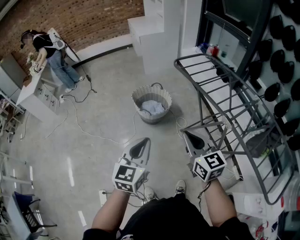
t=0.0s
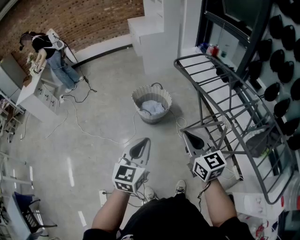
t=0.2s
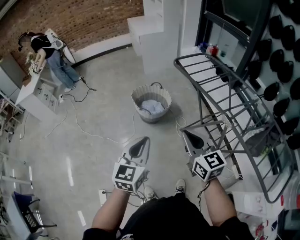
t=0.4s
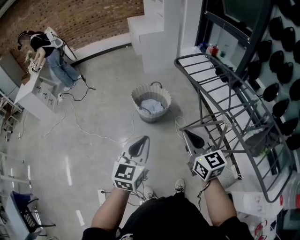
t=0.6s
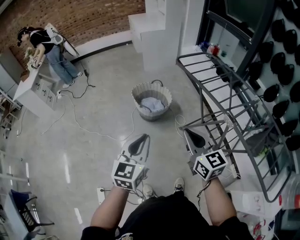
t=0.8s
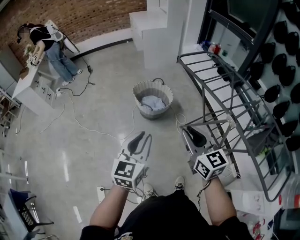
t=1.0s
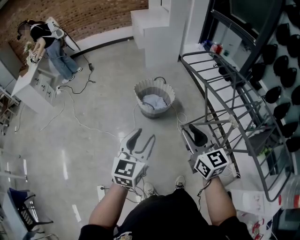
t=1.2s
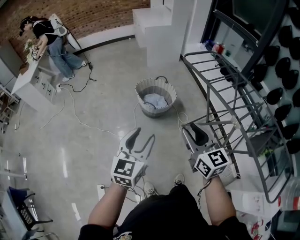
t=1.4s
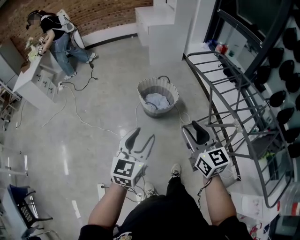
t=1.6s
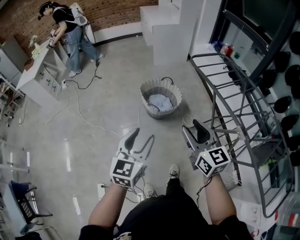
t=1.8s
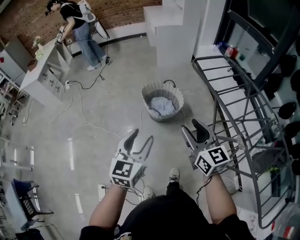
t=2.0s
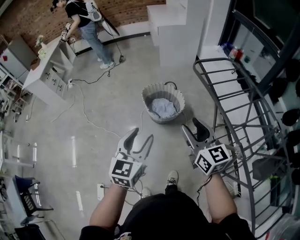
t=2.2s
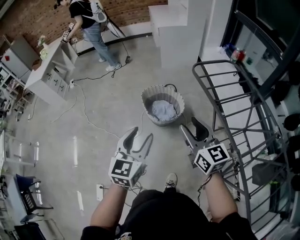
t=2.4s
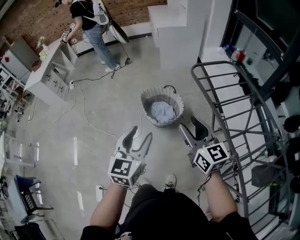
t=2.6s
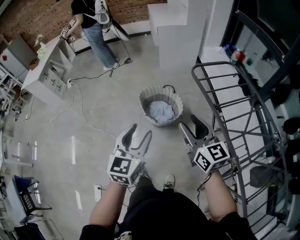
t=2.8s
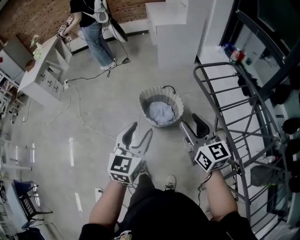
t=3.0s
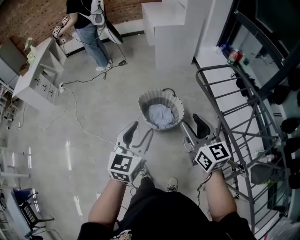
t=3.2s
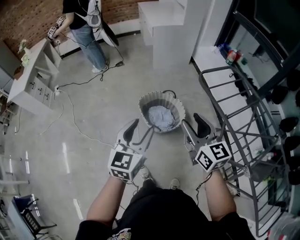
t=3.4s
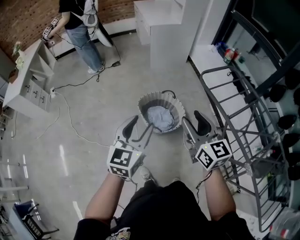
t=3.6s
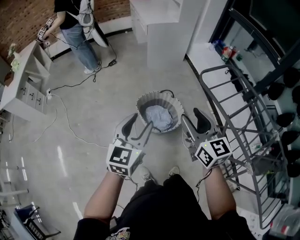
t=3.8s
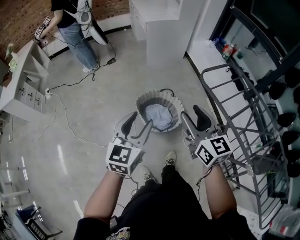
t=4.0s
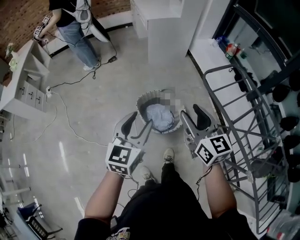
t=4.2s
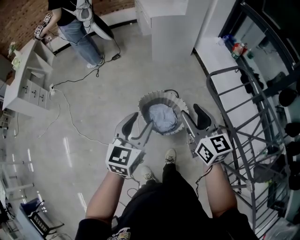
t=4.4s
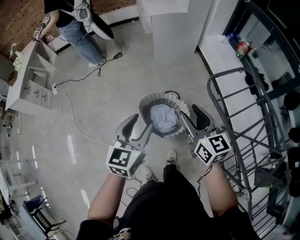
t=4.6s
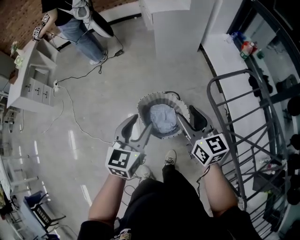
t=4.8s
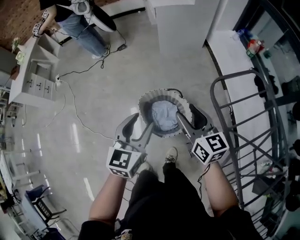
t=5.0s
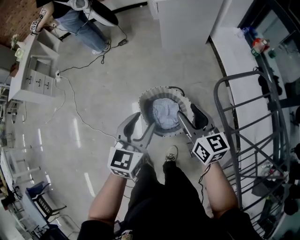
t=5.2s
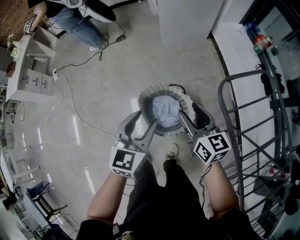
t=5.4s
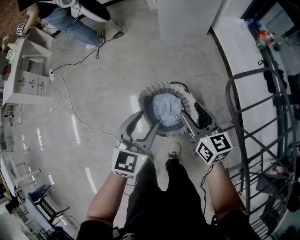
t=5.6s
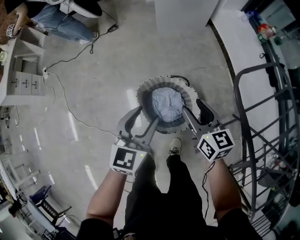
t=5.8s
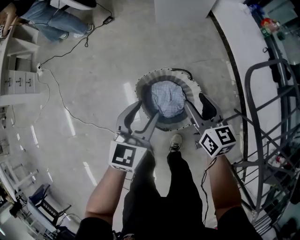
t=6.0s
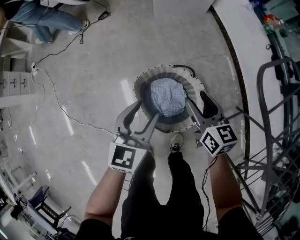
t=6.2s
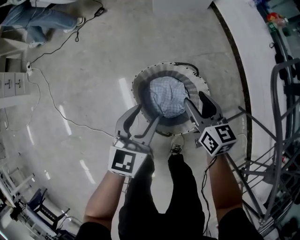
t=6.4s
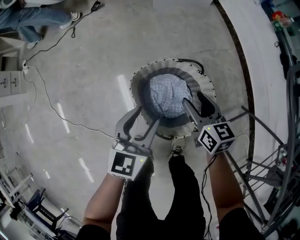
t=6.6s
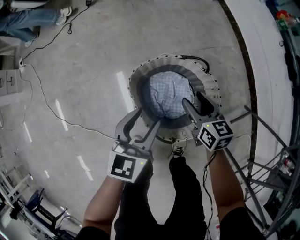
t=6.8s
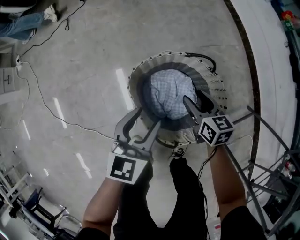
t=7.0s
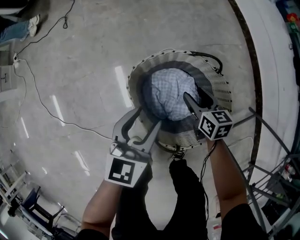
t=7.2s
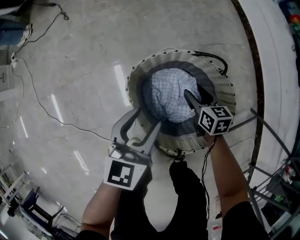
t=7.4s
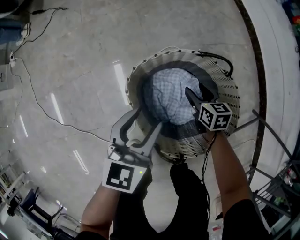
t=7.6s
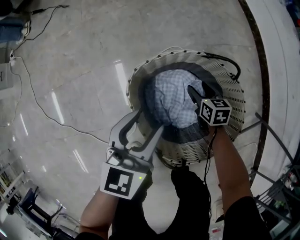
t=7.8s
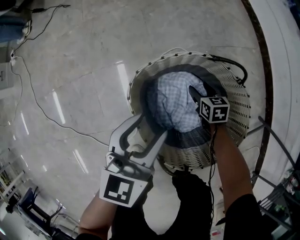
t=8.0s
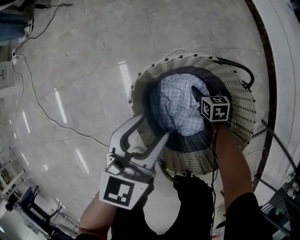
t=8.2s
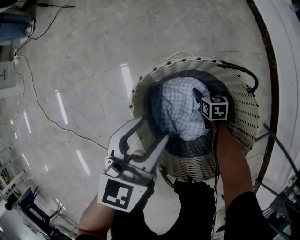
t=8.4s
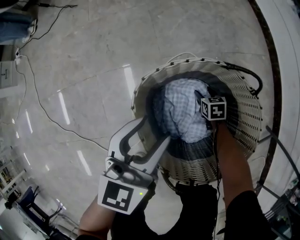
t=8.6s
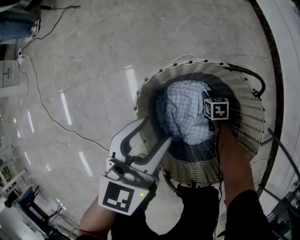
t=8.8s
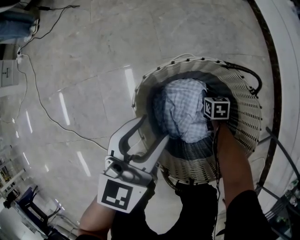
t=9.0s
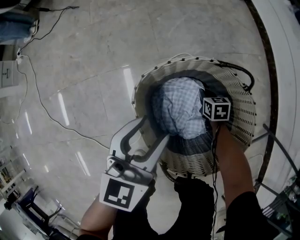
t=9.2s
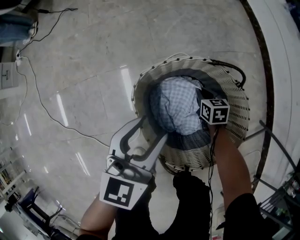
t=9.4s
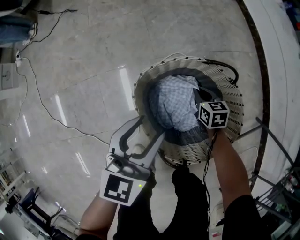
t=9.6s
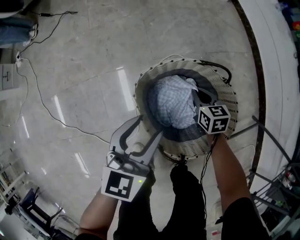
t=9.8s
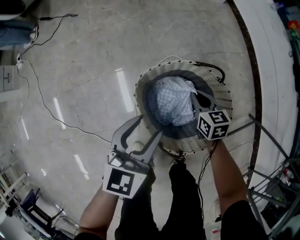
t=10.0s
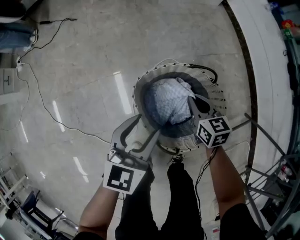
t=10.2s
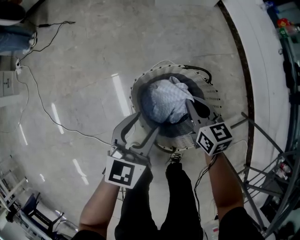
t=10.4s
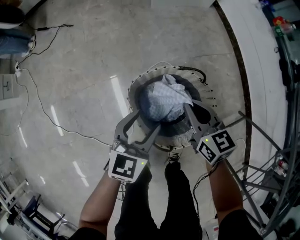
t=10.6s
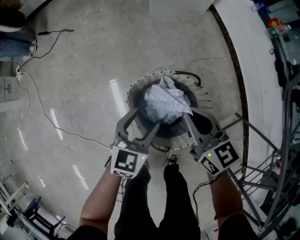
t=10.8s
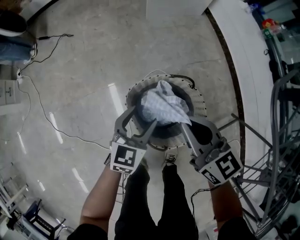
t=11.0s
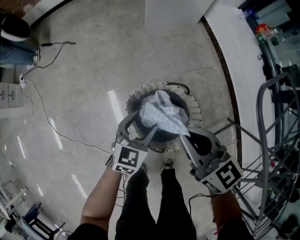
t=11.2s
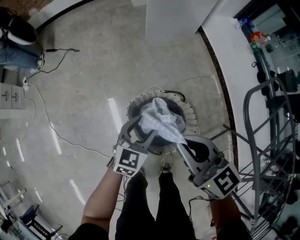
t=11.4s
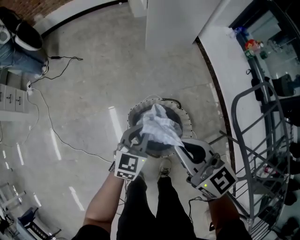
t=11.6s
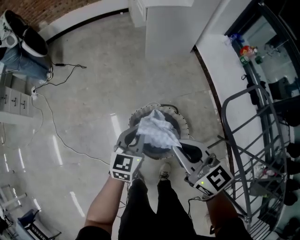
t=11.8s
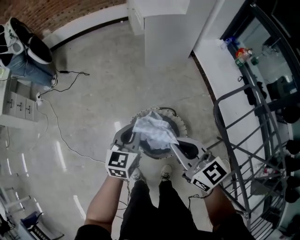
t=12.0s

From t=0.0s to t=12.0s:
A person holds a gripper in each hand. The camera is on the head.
From t=0.0s to t=1.6s: The right gripper goes roughly 10 cm to the left and forward, and opens up; the left gripper moves to the left, about 10 cm, and opens up.
From t=1.6s to t=3.0s: Both grippers move forward, some 20 cm.
From t=3.0s to t=4.4s: The two grippers go some 20 cm forward.
From t=4.4s to t=6.0s: The grippers both shift downward and forward by approximately 30 cm.
From t=6.0s to t=7.6s: The two grippers go roughly 40 cm downward. The right gripper rotates roughly 20 degrees.
From t=7.6s to t=9.0s: The right gripper travels downward by approximately 20 cm, and closes.
From t=9.0s to t=10.4s: The left gripper heads upward, covering about 15 cm, while the right gripper travels upward by about 40 cm, and turns by about 30 degrees.
From t=10.4s to t=12.0s: The left gripper is displaced upward by about 30 cm, and closes its fingers. The right gripper goes about 50 cm upward, and rotates about 20 degrees.

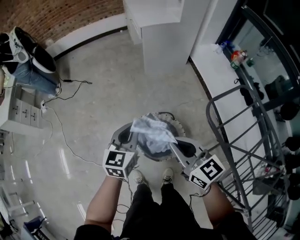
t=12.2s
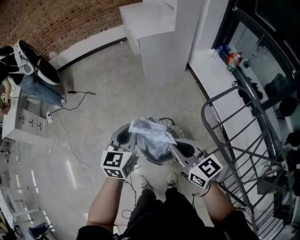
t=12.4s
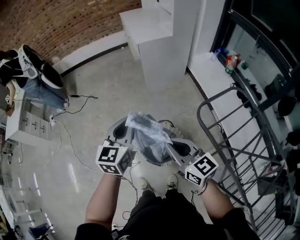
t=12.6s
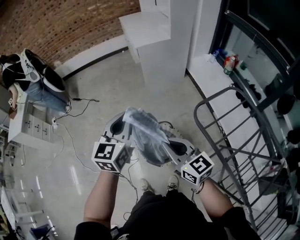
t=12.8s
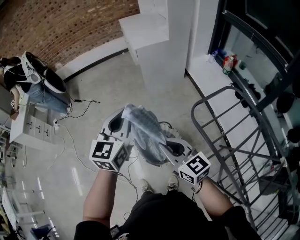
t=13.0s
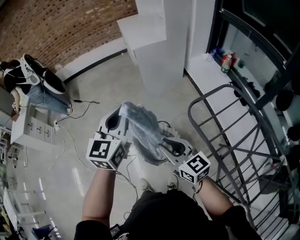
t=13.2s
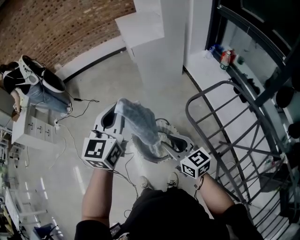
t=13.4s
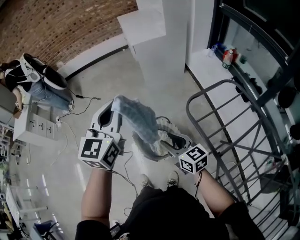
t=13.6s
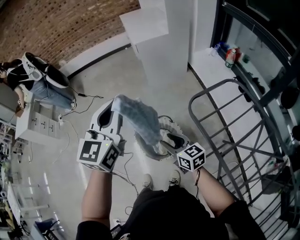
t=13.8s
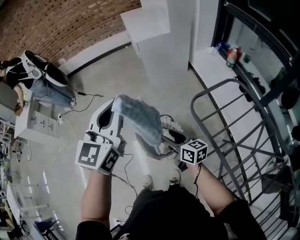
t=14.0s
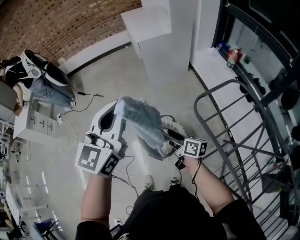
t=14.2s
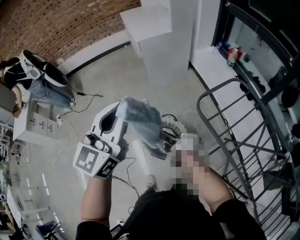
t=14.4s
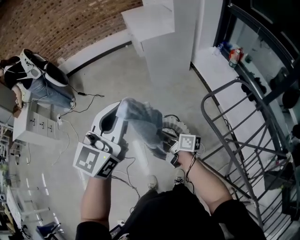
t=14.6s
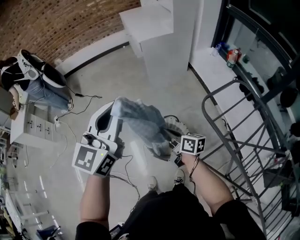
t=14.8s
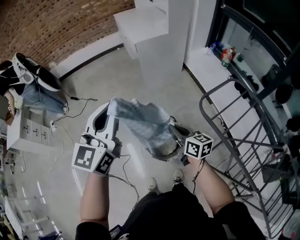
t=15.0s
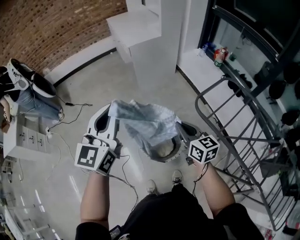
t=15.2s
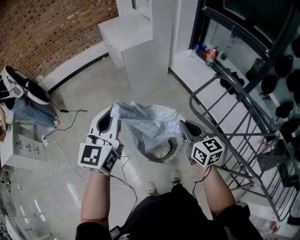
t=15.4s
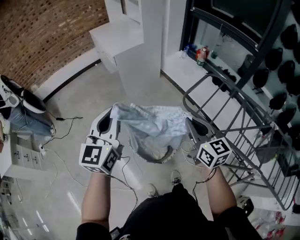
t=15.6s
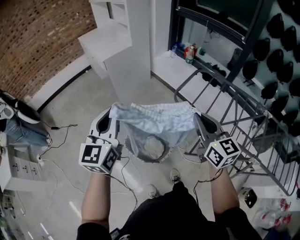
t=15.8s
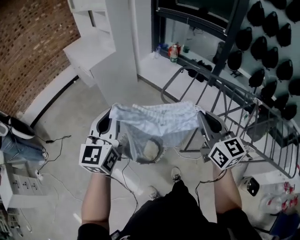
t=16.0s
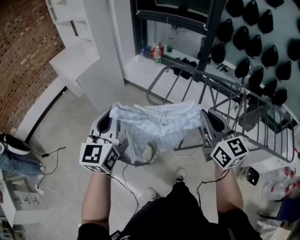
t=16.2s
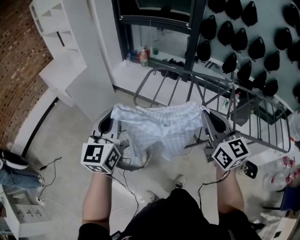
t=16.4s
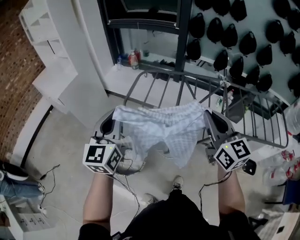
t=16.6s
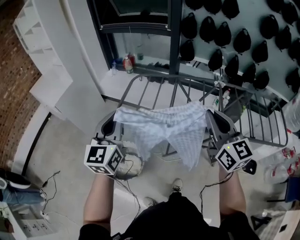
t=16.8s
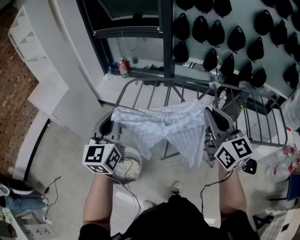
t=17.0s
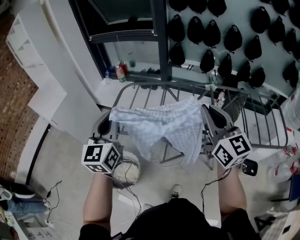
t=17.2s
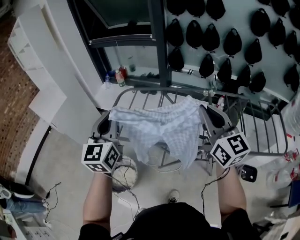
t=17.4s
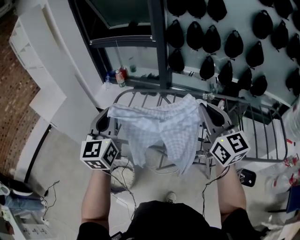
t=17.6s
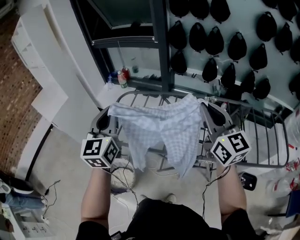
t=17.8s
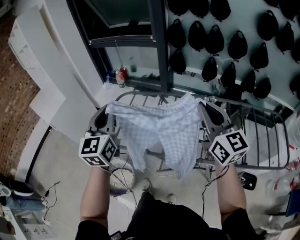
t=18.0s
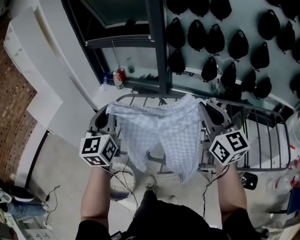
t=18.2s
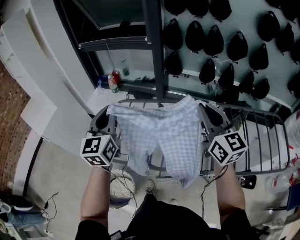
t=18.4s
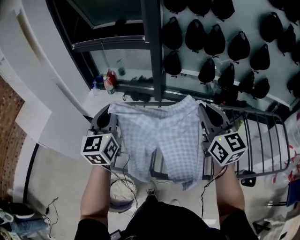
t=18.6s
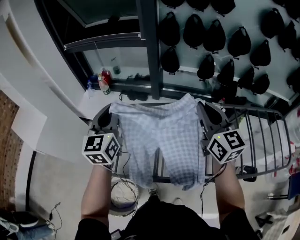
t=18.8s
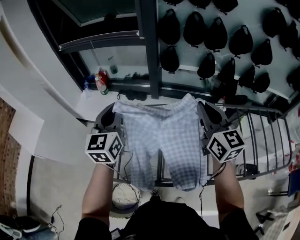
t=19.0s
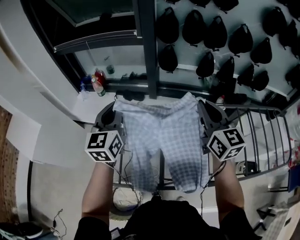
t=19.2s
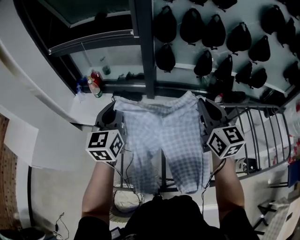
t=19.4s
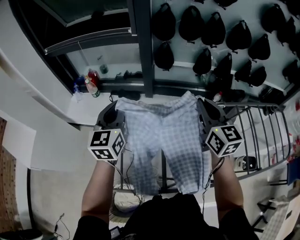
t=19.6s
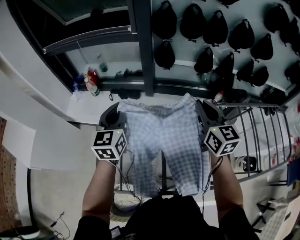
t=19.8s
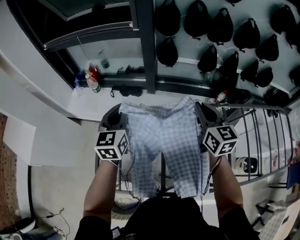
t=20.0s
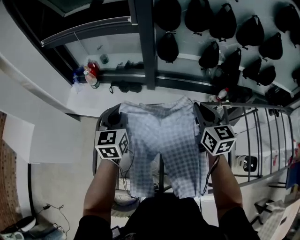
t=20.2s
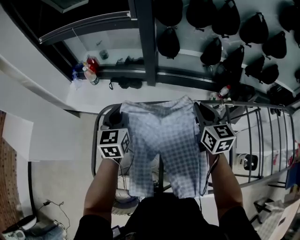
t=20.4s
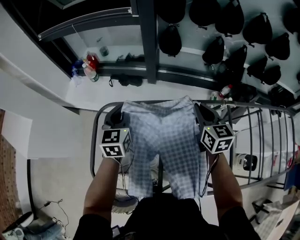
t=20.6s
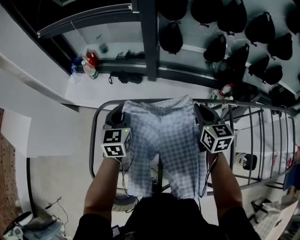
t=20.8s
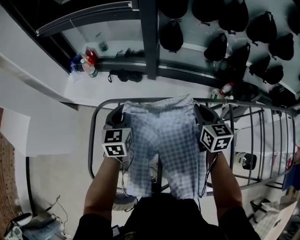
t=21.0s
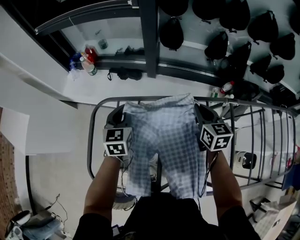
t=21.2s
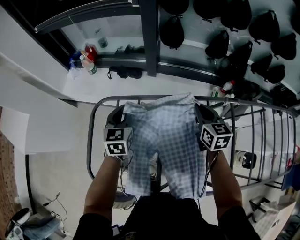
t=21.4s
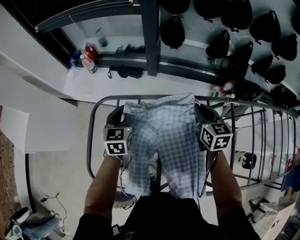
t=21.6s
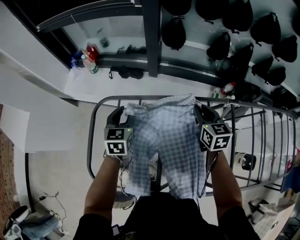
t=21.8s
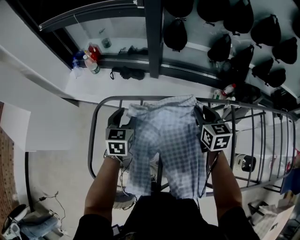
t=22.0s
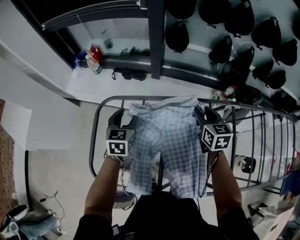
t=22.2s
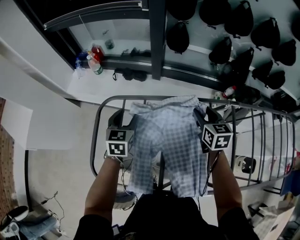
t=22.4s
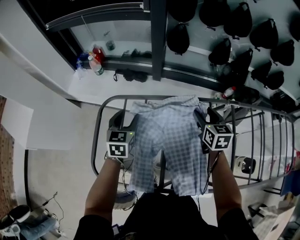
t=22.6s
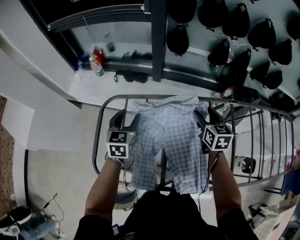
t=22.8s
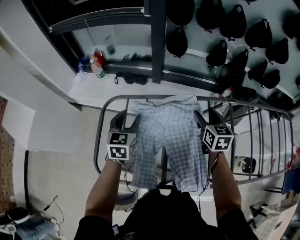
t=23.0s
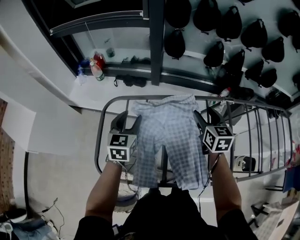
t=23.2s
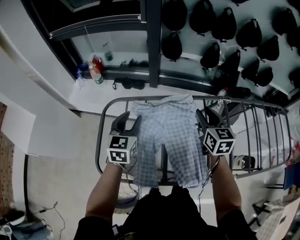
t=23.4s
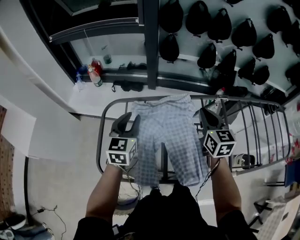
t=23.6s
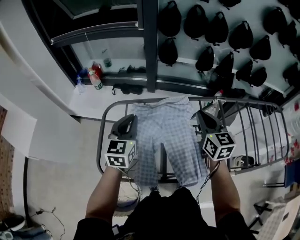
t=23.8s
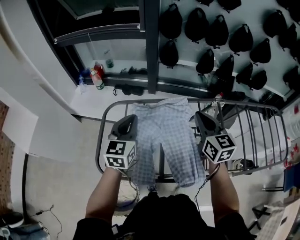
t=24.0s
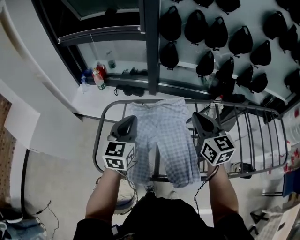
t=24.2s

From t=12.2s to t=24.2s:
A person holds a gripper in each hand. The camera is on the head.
From t=12.2s to t=13.8s: The left gripper goes roughly 25 cm upward, and turns by some 20 degrees. Meanwhile the right gripper shifts about 10 cm to the right, downward and backward, and opens.
From t=13.8s to t=15.2s: The right gripper shifts roughly 10 cm upward and forward, changes its angle by some 20 degrees, and closes up. Meanwhile the left gripper moves to the left, about 10 cm.
From t=15.2s to t=16.6s: The right gripper moves about 40 cm, and rotates some 50 degrees, while the left gripper changes place by about 30 cm, and swivels approximately 40 degrees.
From t=16.6s to t=18.2s: The right gripper goes about 25 cm to the right and forward. Meanwhile the left gripper travels forward and to the right by about 30 cm.
From t=18.2s to t=19.8s: Both grippers move forward and downward, some 30 cm. The right gripper swivels some 20 degrees, while the left gripper rotates about 20 degrees.
From t=19.8s to t=21.2s: Both grippers travel together downward, approximately 15 cm.
From t=21.2s to t=22.6s: The left gripper opens its fingers. Meanwhile the right gripper opens its fingers.
From t=22.6s to t=24.2s: Both grippers travel together upward and backward, approximately 20 cm. The left gripper closes its fingers. Meanwhile the right gripper swivels roughly 20 degrees, and closes its fingers.
